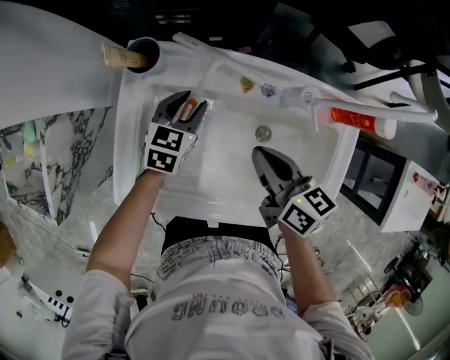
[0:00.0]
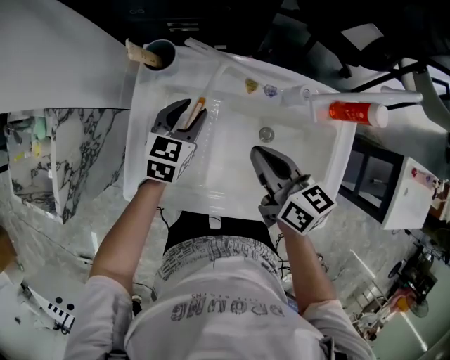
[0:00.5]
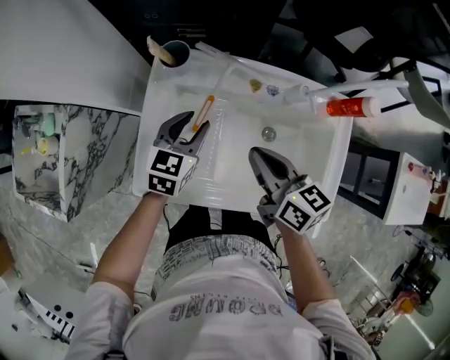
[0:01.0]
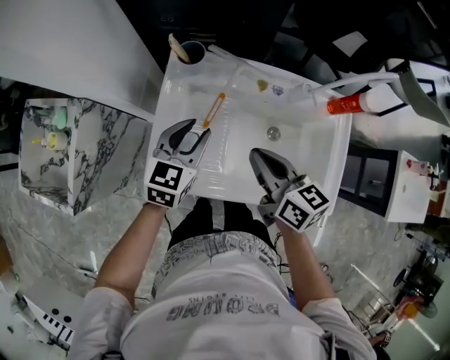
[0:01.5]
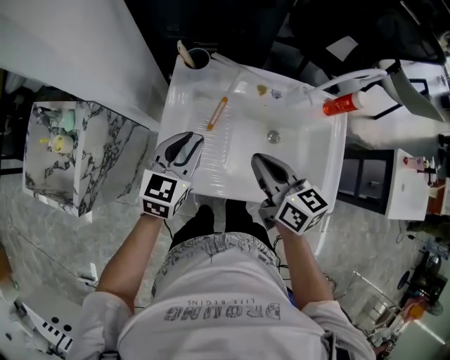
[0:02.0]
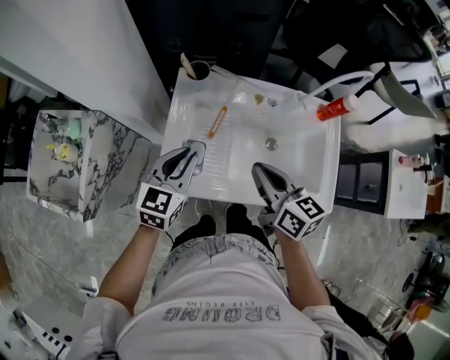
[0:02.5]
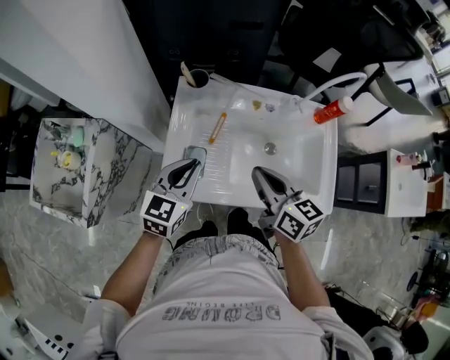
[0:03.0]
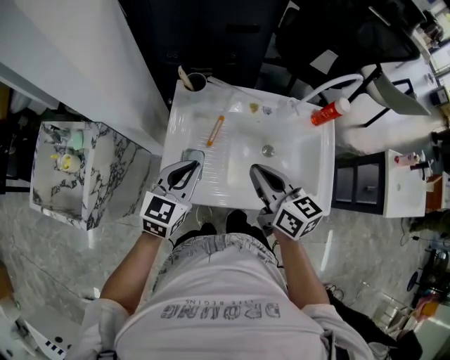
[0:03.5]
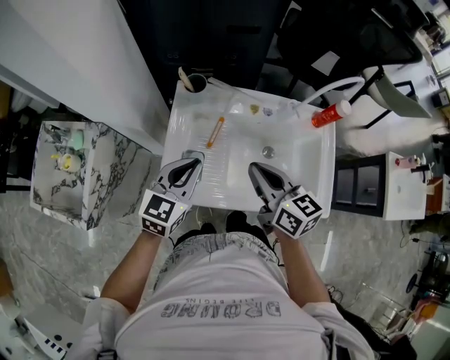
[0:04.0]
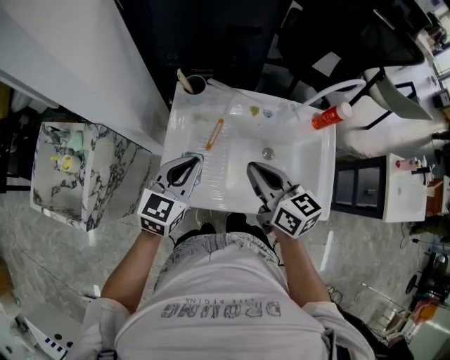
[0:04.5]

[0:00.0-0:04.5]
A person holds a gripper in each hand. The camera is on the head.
0:00.0 to 0:02.0: The left gripper moves upward, backward and to the left, approximately 25 cm. Meanwhile the right gripper moves to the left, backward and upward, roughly 15 cm.
0:02.0 to 0:04.5: The left gripper closes its fingers.

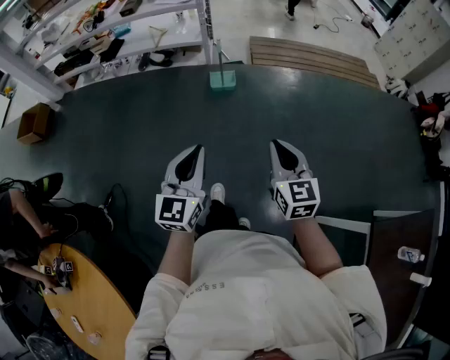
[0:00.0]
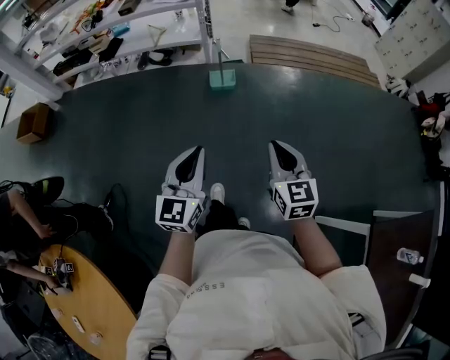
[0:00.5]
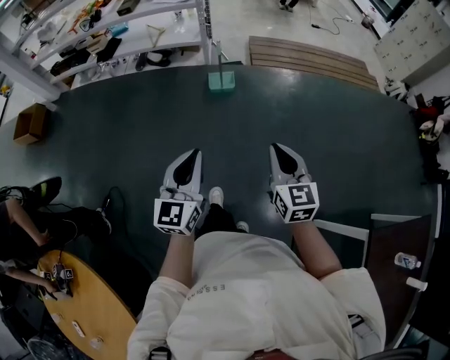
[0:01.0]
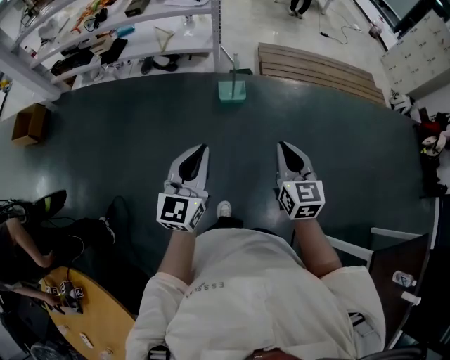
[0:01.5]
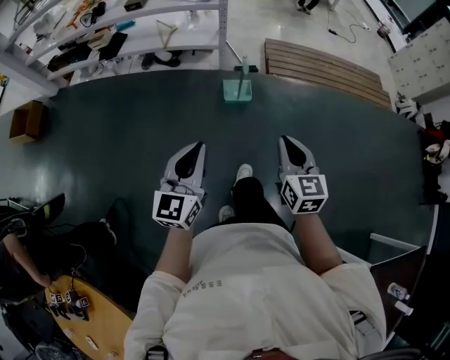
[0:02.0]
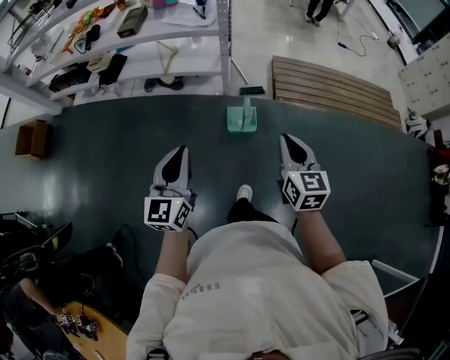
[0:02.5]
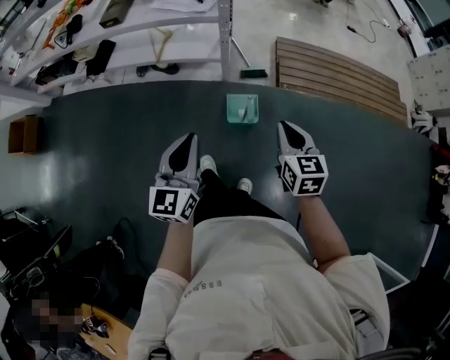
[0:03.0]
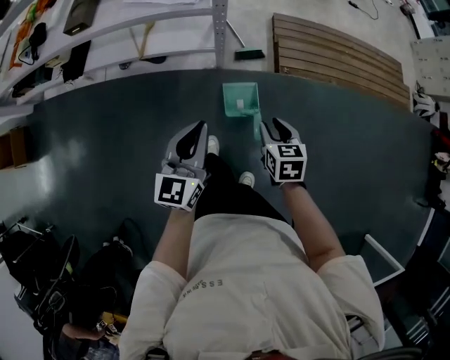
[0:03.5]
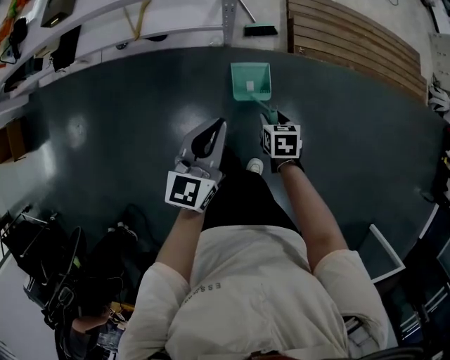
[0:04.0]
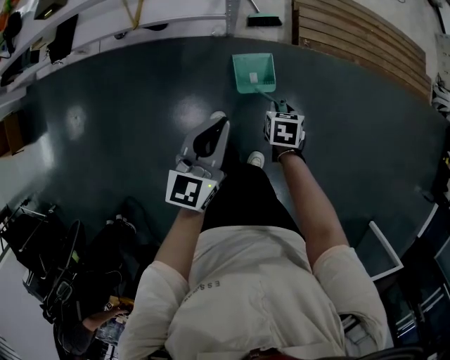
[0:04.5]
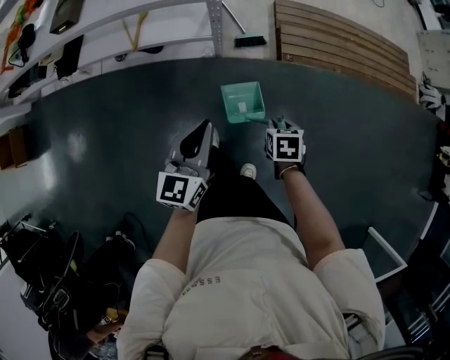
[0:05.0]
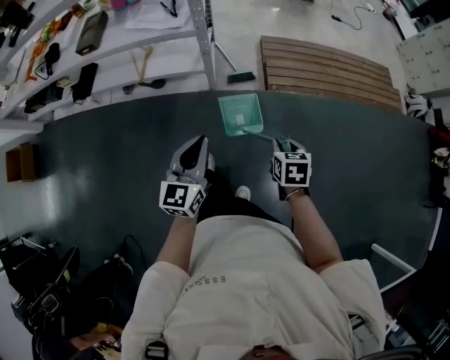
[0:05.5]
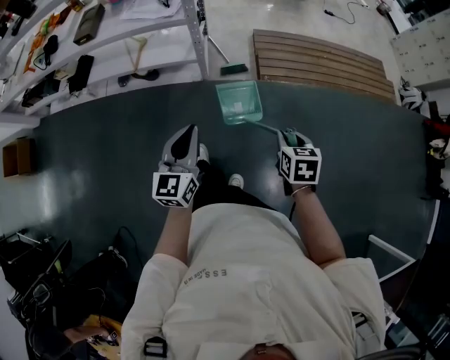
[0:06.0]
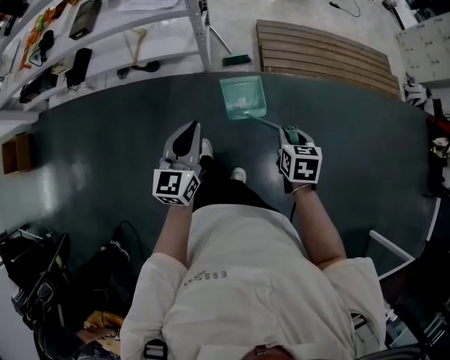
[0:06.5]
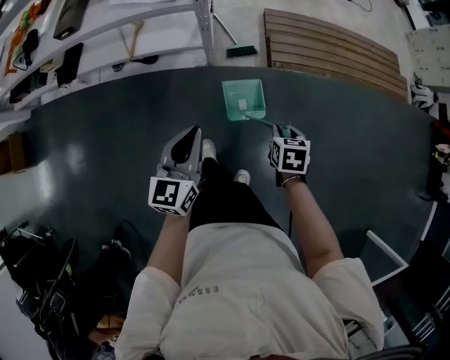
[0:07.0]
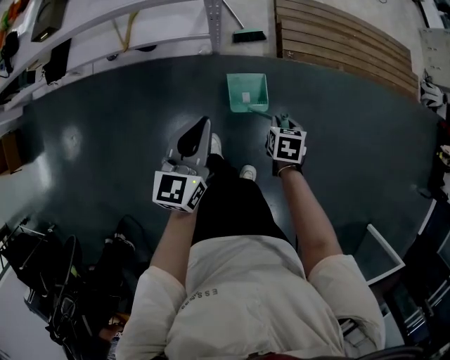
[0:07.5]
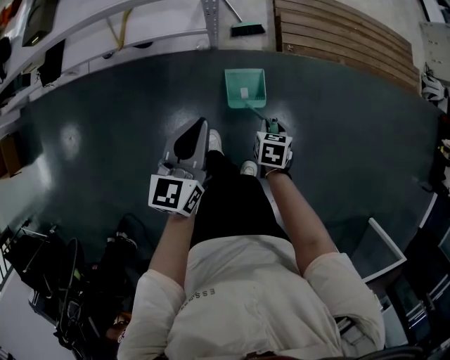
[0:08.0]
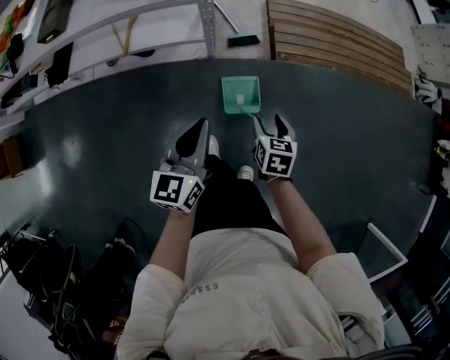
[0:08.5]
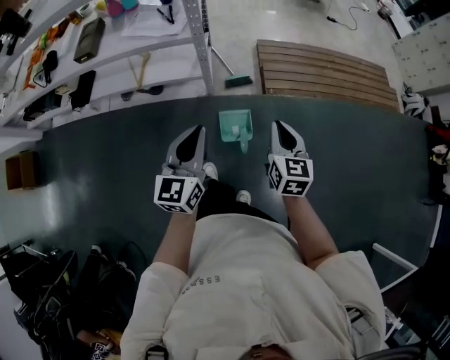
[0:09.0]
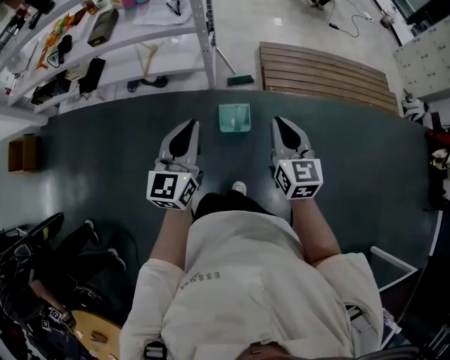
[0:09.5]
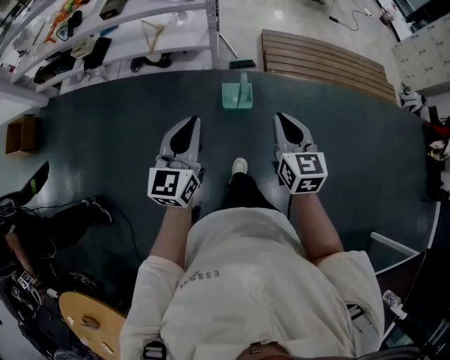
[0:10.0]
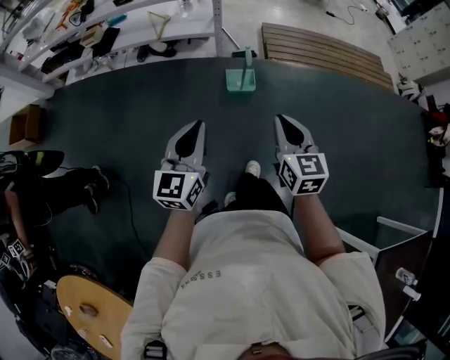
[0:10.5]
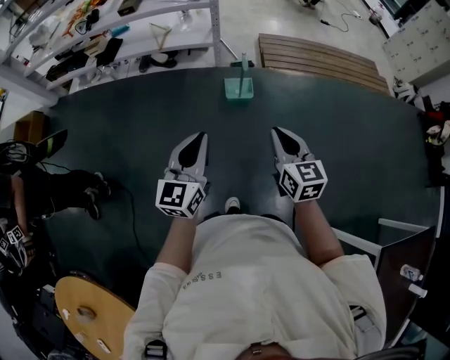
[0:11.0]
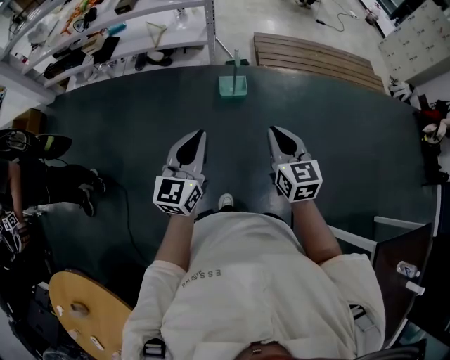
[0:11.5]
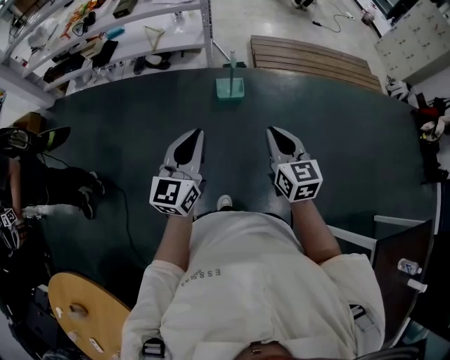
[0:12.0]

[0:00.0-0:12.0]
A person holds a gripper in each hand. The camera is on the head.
0:00.0 to 0:02.0: The right gripper goes roughly 25 cm forward; the left gripper shifts about 25 cm forward and to the left.
0:02.0 to 0:04.0: The pair of grippers is taken forward, about 50 cm. The right gripper shifts some 35 cm downward, tips its fingers downward by approximately 50 degrees, and opens its fingers.
0:04.0 to 0:06.0: The right gripper heads upward, to the right and backward, covering approximately 35 cm, and closes. Meanwhile the left gripper is displaced backward, upward and to the right by roughly 20 cm.
0:06.0 to 0:08.0: The right gripper is displaced downward, to the left and forward by some 35 cm. The left gripper heads forward, downward and to the left, covering roughly 25 cm.
0:08.0 to 0:10.0: The left gripper moves backward and upward, roughly 40 cm, and changes its angle by about 20 degrees. The right gripper shifts about 50 cm upward and backward, tilts its fingers approximately 50 degrees upward, and opens, then closes again.
0:10.0 to 0:12.0: The two grippers go about 25 cm backward.

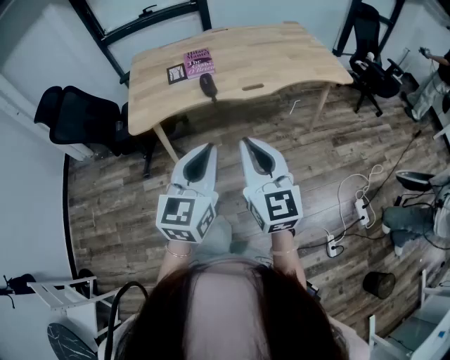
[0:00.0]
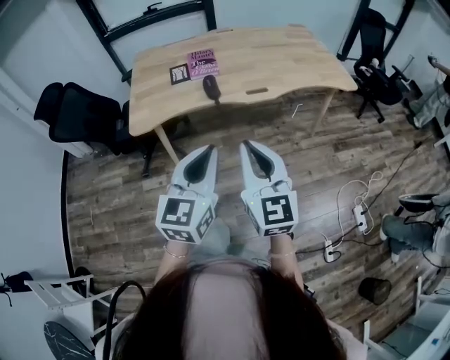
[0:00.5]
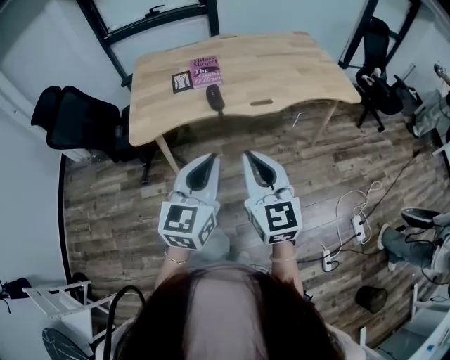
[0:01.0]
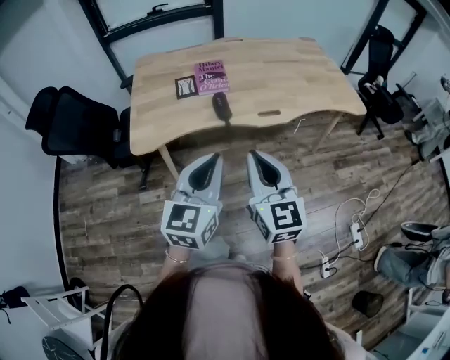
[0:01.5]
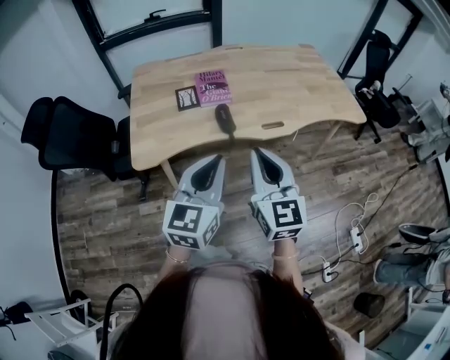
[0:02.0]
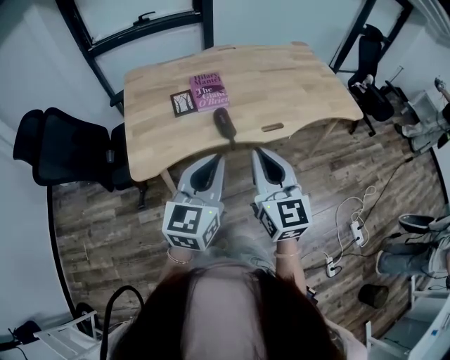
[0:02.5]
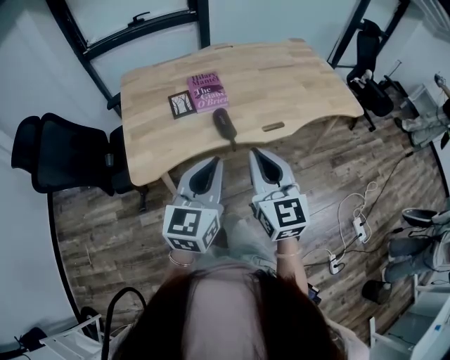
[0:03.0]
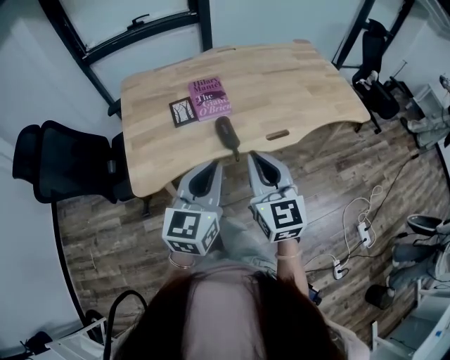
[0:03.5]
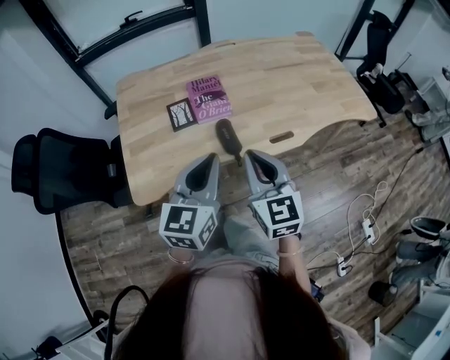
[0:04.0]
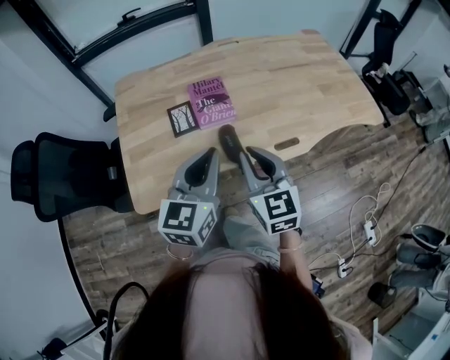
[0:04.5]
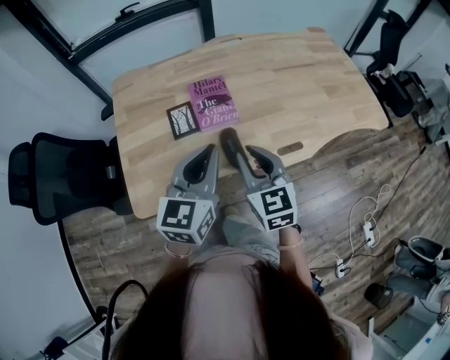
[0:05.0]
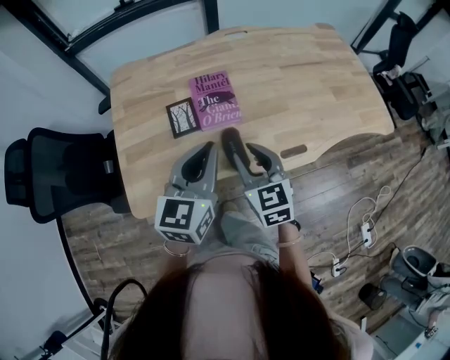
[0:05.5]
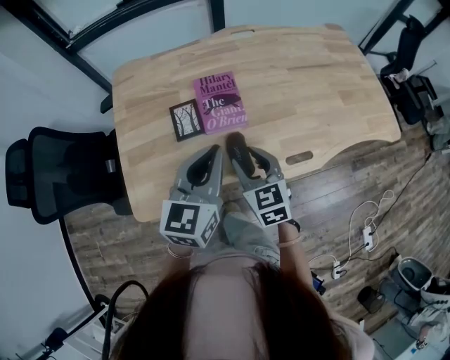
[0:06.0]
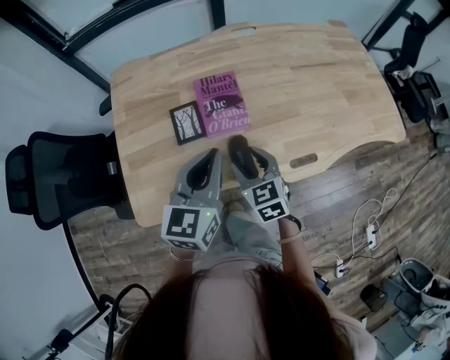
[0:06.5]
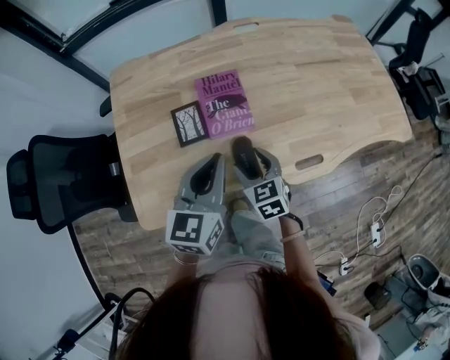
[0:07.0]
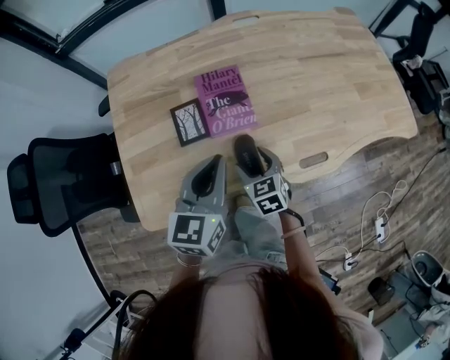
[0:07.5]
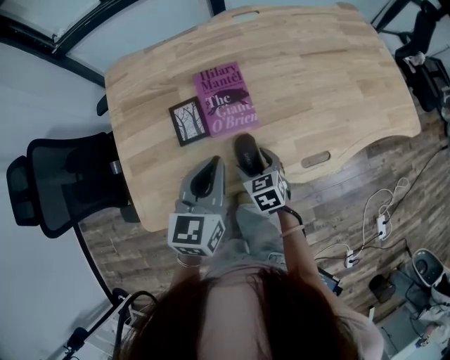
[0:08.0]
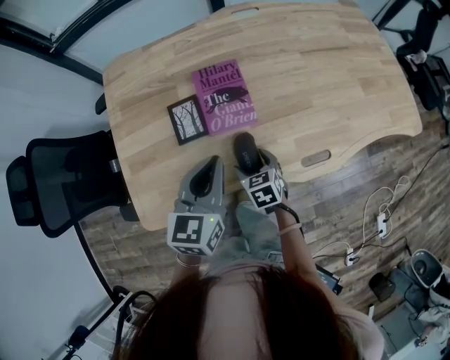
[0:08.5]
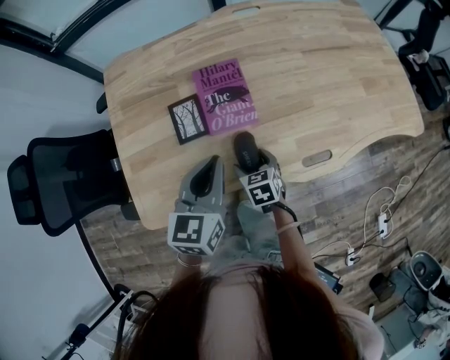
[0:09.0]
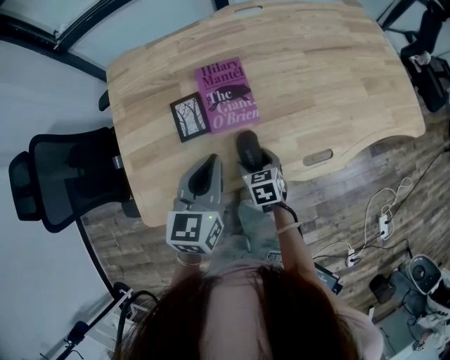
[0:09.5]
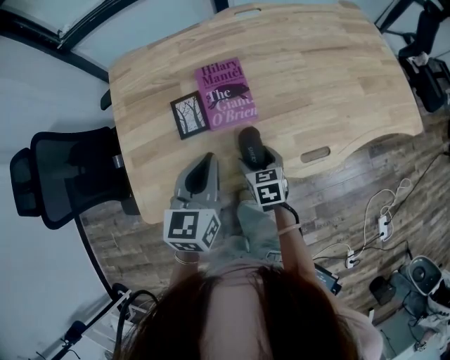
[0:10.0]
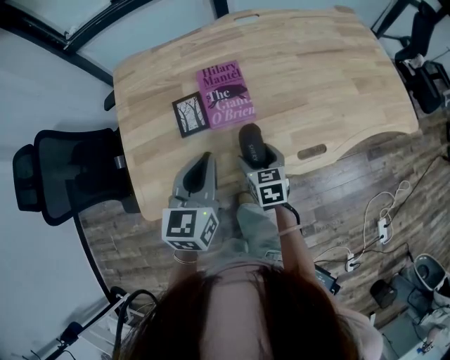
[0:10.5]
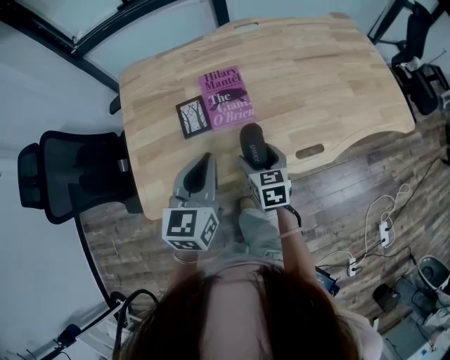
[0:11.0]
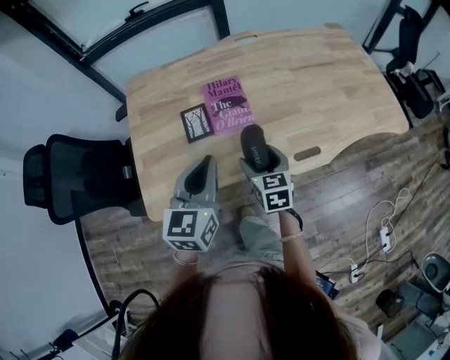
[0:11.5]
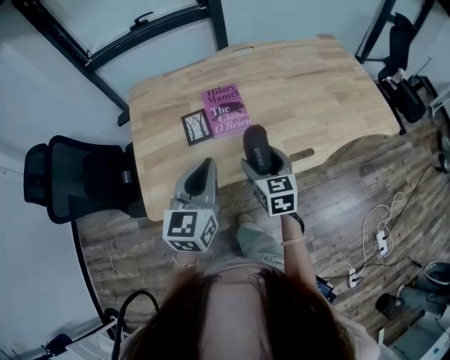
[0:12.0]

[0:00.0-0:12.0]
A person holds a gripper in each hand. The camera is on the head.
0:00.0 to 0:02.0: The two grippers go approximately 20 cm forward and to the left.
0:02.0 to 0:04.0: Both grippers move forward, approximately 15 cm.
0:04.0 to 0:06.0: The right gripper travels forward and downward by approximately 20 cm, swivels roughly 20 degrees, and opens. The left gripper goes roughly 15 cm forward.
0:06.0 to 0:08.0: The left gripper goes about 10 cm downward. The right gripper is displaced downward by some 15 cm, swivels about 20 degrees, and opens.
0:08.0 to 0:10.0: The grippers make only small movements.
0:10.0 to 0:12.0: The right gripper goes about 20 cm upward and backward, and rotates some 20 degrees. Meanwhile the left gripper goes some 15 cm backward and upward.
